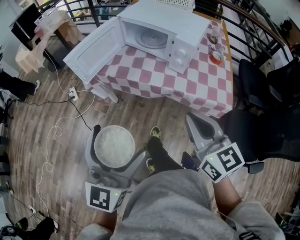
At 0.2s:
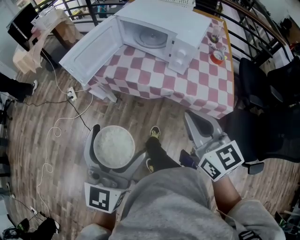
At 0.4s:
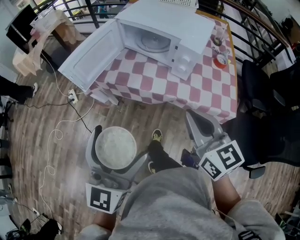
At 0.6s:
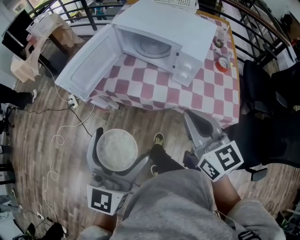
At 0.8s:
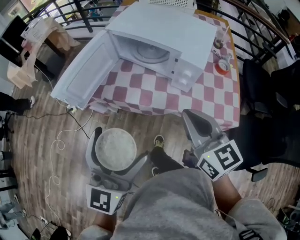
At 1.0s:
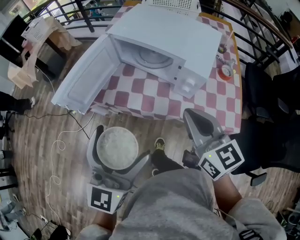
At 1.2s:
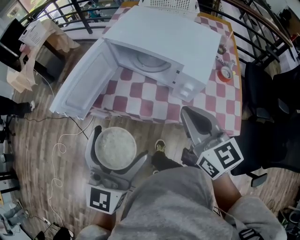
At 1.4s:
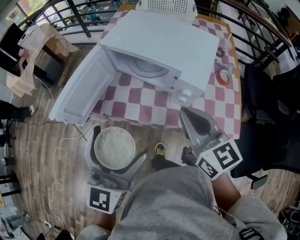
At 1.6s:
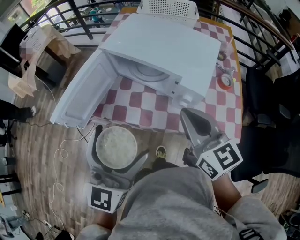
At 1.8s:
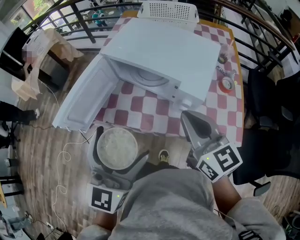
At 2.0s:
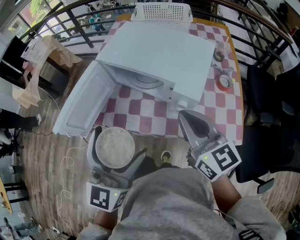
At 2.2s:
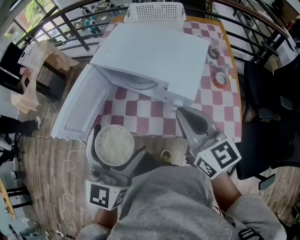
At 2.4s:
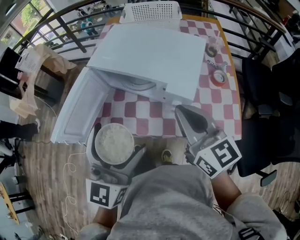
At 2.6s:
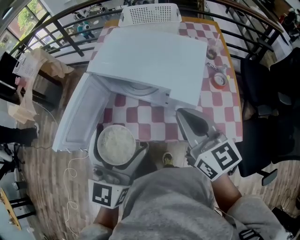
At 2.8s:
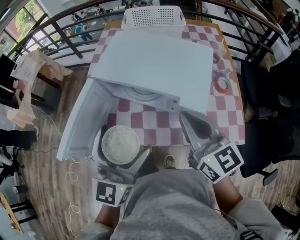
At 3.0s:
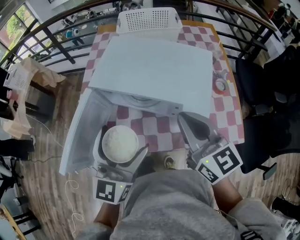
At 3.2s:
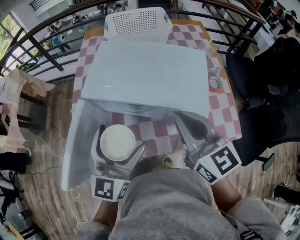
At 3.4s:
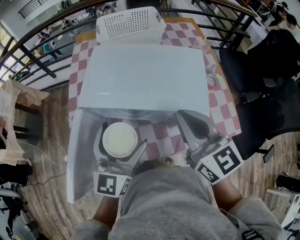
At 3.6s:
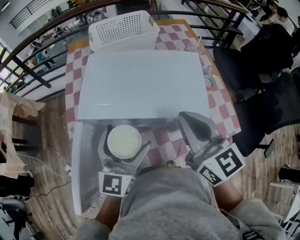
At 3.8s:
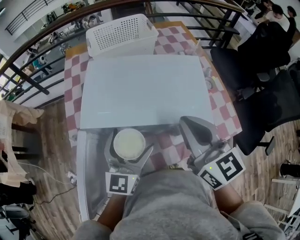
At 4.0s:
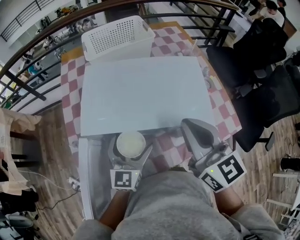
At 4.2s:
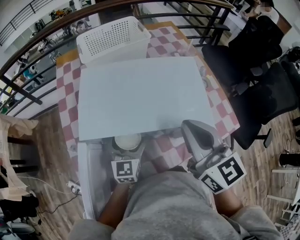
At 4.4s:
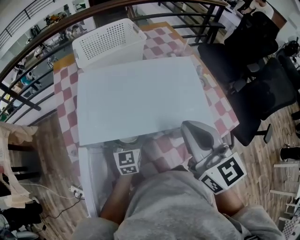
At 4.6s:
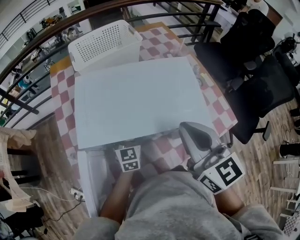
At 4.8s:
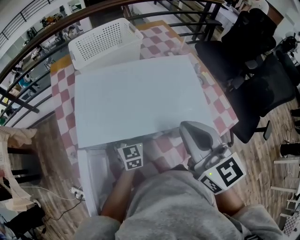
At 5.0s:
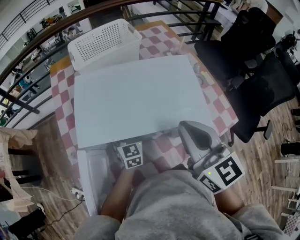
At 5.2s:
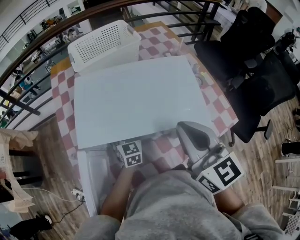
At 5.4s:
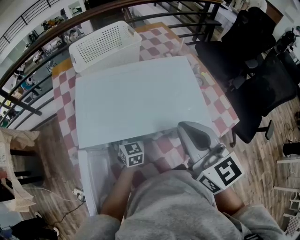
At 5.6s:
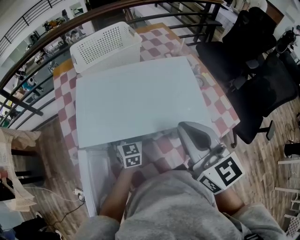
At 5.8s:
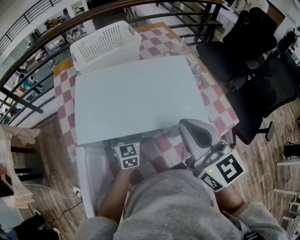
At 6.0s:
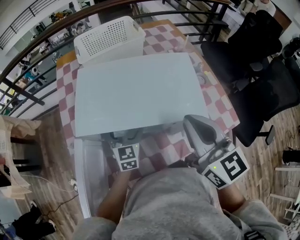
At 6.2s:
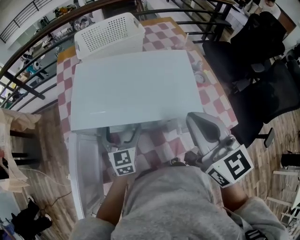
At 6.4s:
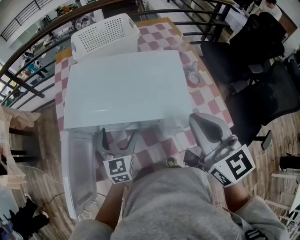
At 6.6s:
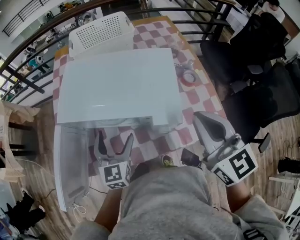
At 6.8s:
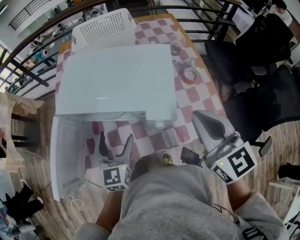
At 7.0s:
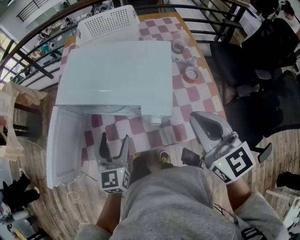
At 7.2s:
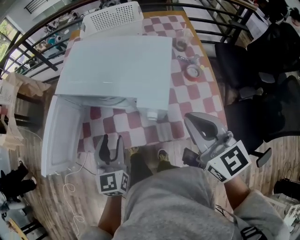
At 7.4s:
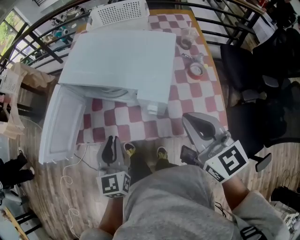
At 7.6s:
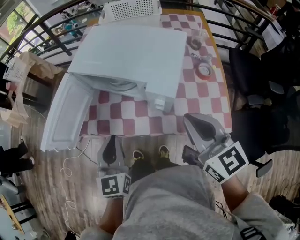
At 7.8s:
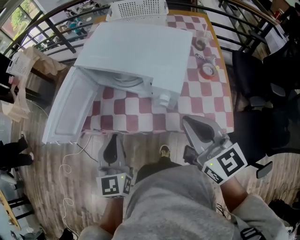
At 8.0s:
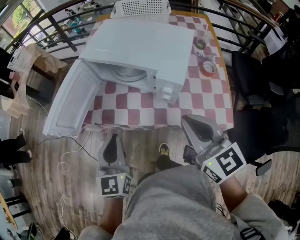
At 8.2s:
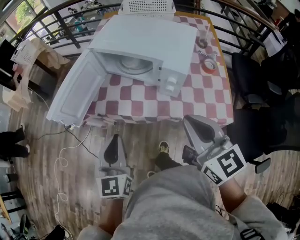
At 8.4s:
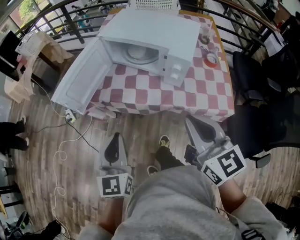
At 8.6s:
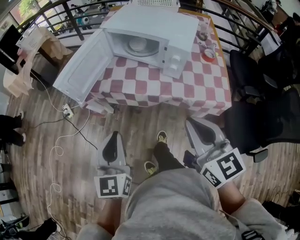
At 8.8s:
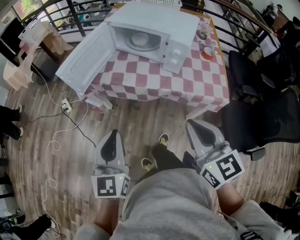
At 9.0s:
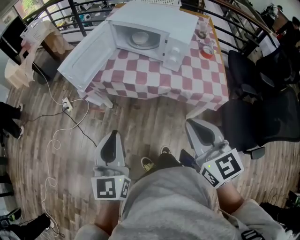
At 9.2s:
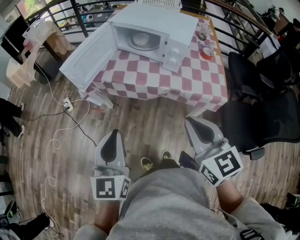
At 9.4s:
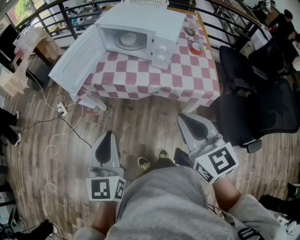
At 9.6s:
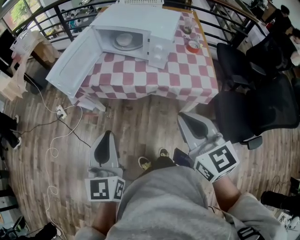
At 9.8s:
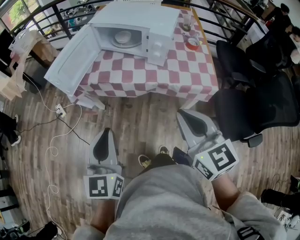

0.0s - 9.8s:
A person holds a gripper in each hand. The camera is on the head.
0.0s - 1.4s: Both grippers travel together forward, some 25 cm.
1.4s - 2.8s: The right gripper moves forward, about 5 cm, while the left gripper goes about 10 cm forward.
2.8s - 4.2s: The right gripper travels forward by roughly 10 cm, and rotates about 30 degrees; the left gripper is displaced forward and downward by about 30 cm, and changes its angle by about 20 degrees.
4.2s - 5.6s: The left gripper goes about 10 cm downward and forward.
5.6s - 7.0s: The left gripper heads backward and upward, covering some 25 cm, and changes its angle by some 20 degrees; the right gripper moves to the right and backward, approximately 20 cm.
7.0s - 8.4s: Both grippers travel together backward and to the left, approximately 25 cm. The left gripper closes.
8.4s - 9.8s: The grippers both shift backward by approximately 10 cm.

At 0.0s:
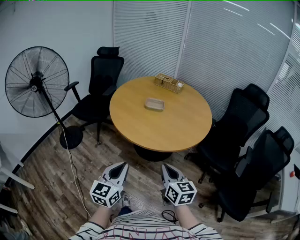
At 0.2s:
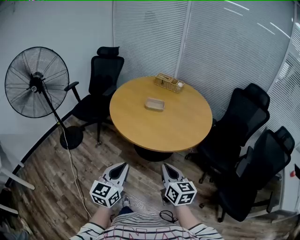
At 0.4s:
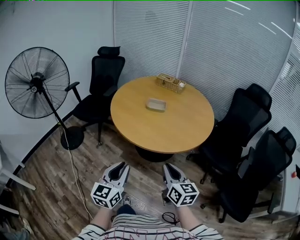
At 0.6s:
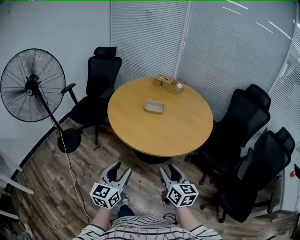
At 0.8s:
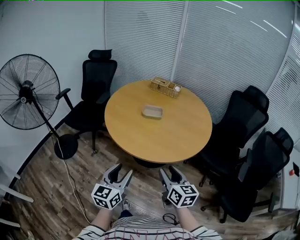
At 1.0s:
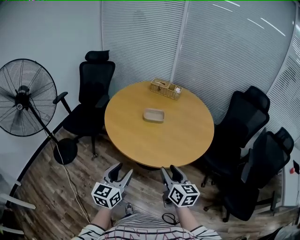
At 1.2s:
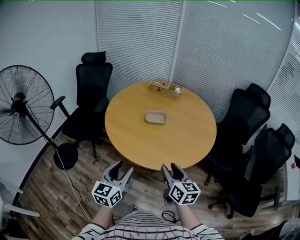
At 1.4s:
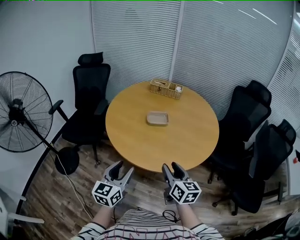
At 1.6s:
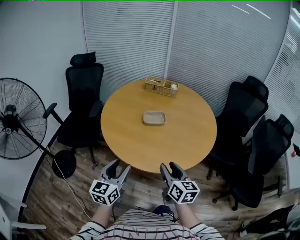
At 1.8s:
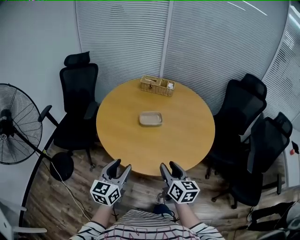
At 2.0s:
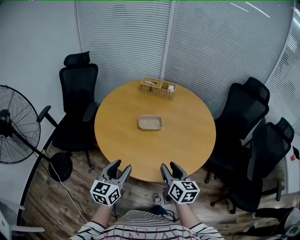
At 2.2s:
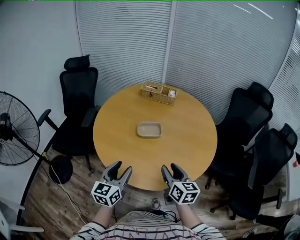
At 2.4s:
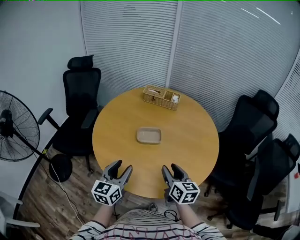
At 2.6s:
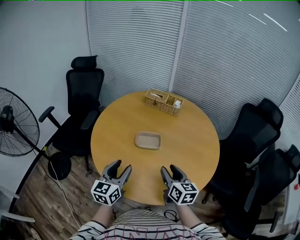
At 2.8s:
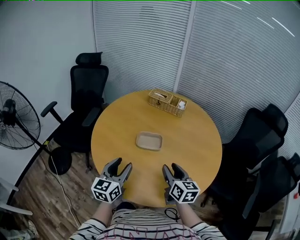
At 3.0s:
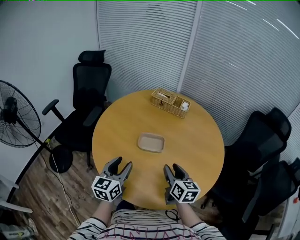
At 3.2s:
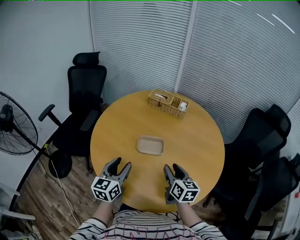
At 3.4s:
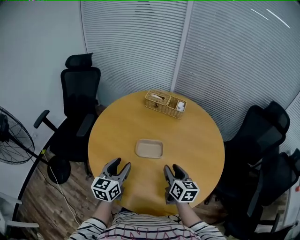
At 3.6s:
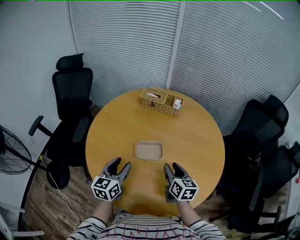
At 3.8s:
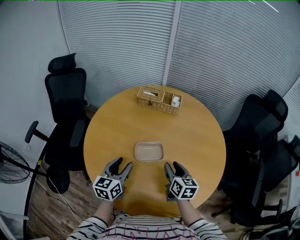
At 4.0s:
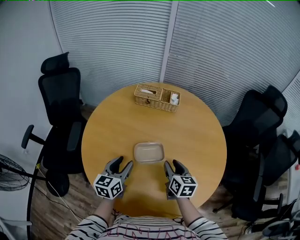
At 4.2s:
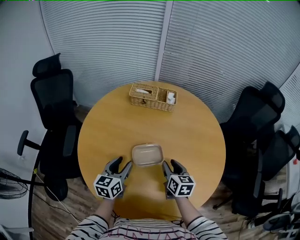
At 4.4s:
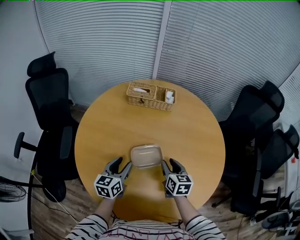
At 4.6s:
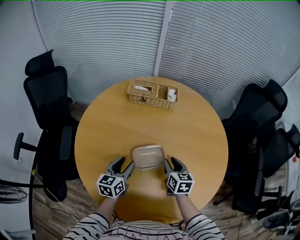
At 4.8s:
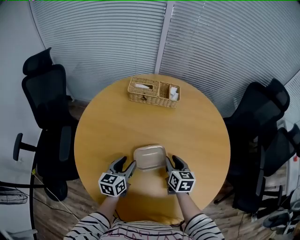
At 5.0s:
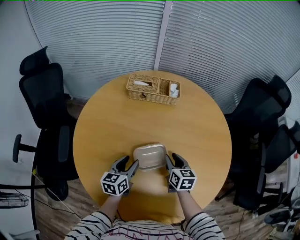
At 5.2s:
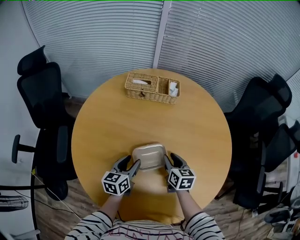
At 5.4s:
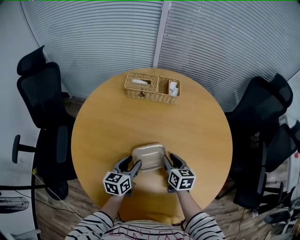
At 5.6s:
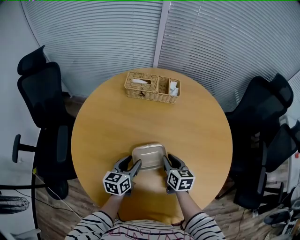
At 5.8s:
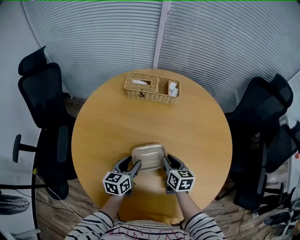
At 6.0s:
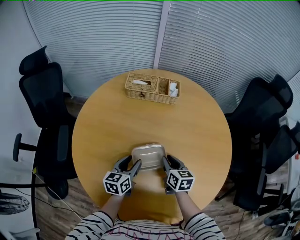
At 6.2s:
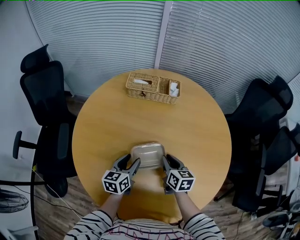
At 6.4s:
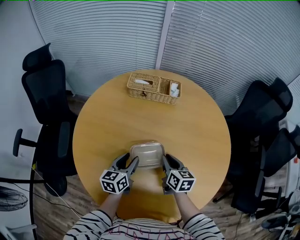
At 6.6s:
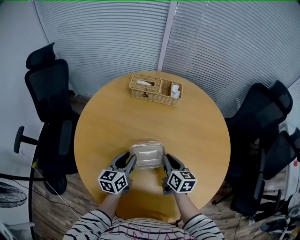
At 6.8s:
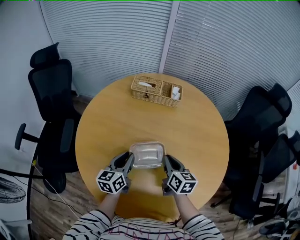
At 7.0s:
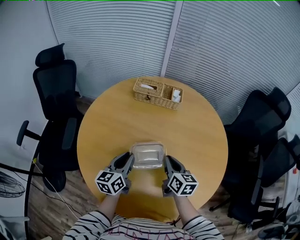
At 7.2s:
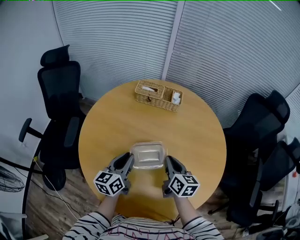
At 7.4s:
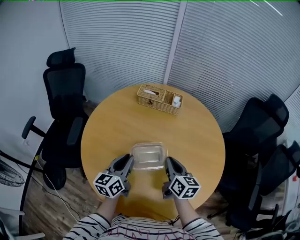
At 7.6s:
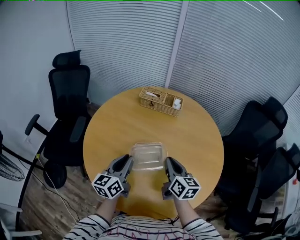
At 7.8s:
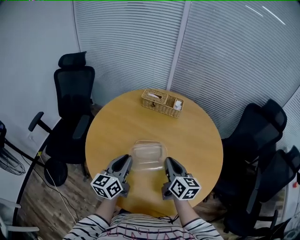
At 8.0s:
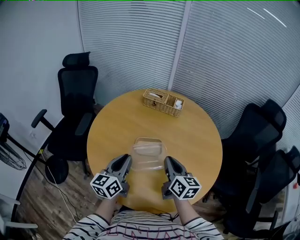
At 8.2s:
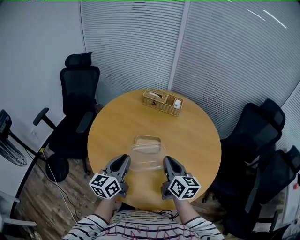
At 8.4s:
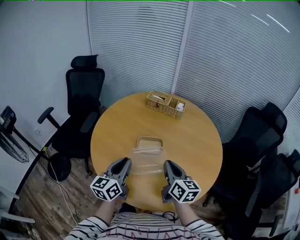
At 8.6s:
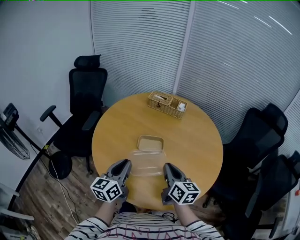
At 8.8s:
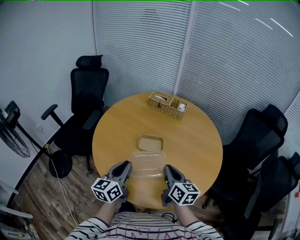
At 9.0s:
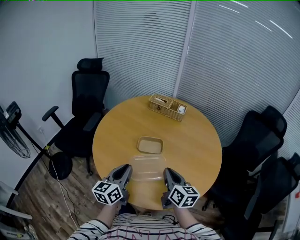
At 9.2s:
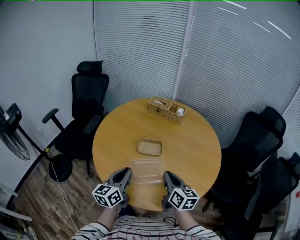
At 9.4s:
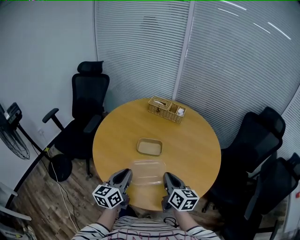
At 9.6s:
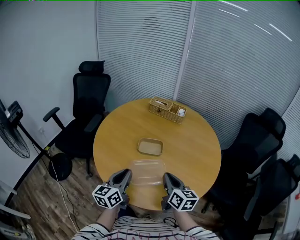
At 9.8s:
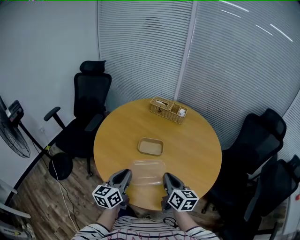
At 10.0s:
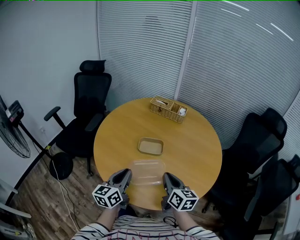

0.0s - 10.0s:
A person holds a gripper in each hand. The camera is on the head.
0.0s - 1.4s: Both grippers travel together forward and to the left, about 25 cm. The left gripper opens. Meanwhile the right gripper opens its fingers.
1.4s - 2.8s: Both grippers travel together forward, roughly 25 cm.
2.8s - 4.2s: The grippers both shift forward and downward by roughly 20 cm. The left gripper swivels some 20 degrees; the right gripper changes its angle by some 20 degrees.
4.2s - 5.8s: The two grippers go some 10 cm downward and forward.
5.8s - 7.2s: The left gripper travels upward and backward by some 15 cm, and closes; the right gripper is displaced upward by about 10 cm.
7.2s - 8.6s: The right gripper moves backward and upward, some 20 cm, while the left gripper shifts about 20 cm backward.
8.6s - 10.0s: The left gripper shifts about 5 cm backward, while the right gripper moves roughly 5 cm.

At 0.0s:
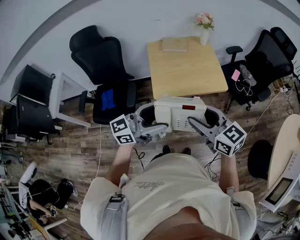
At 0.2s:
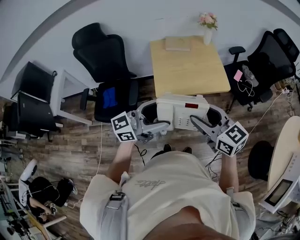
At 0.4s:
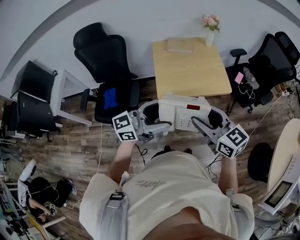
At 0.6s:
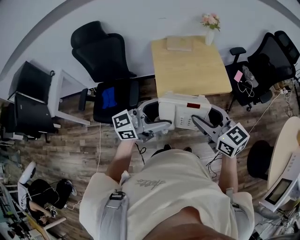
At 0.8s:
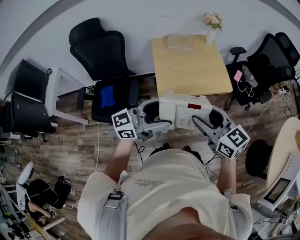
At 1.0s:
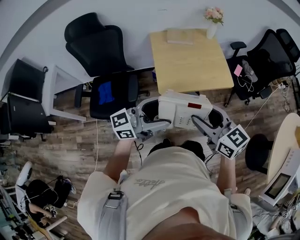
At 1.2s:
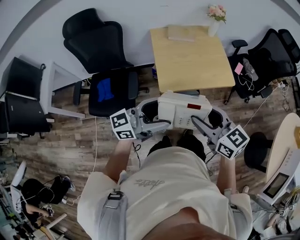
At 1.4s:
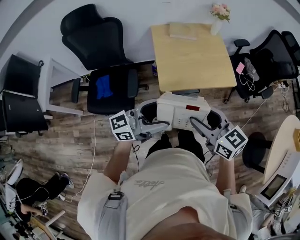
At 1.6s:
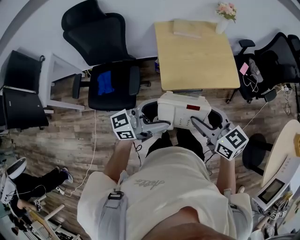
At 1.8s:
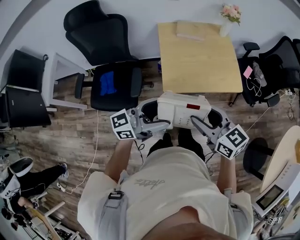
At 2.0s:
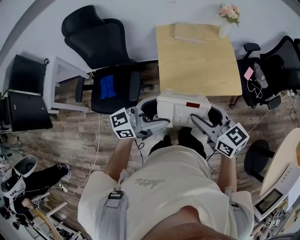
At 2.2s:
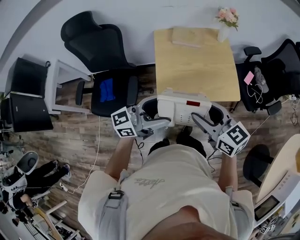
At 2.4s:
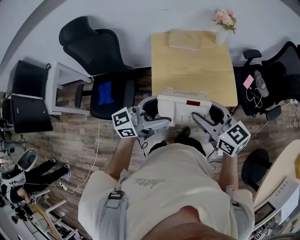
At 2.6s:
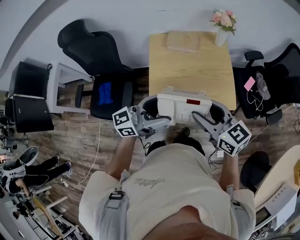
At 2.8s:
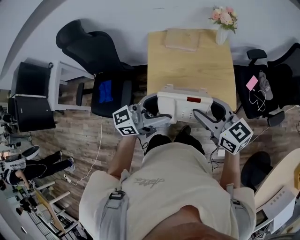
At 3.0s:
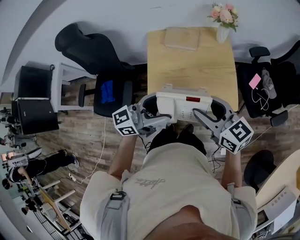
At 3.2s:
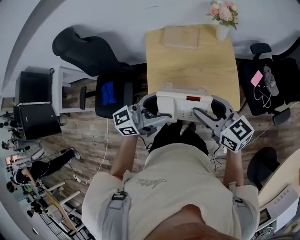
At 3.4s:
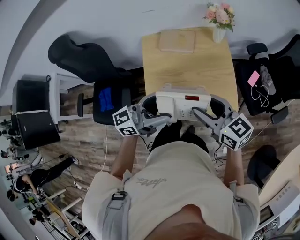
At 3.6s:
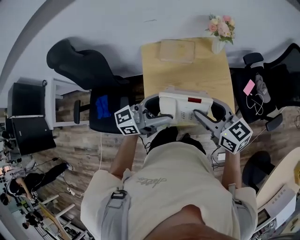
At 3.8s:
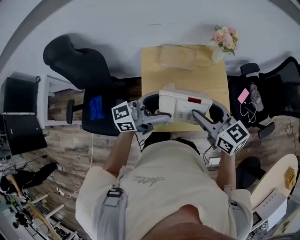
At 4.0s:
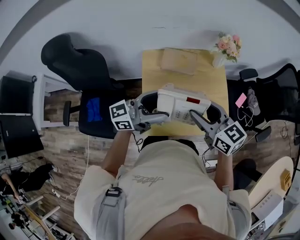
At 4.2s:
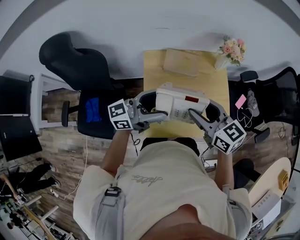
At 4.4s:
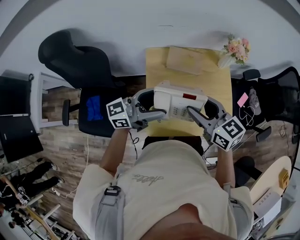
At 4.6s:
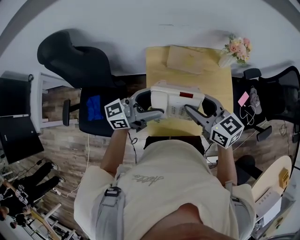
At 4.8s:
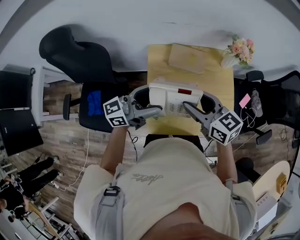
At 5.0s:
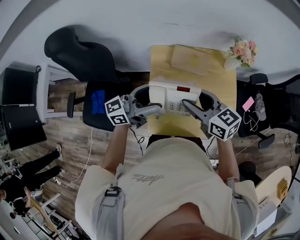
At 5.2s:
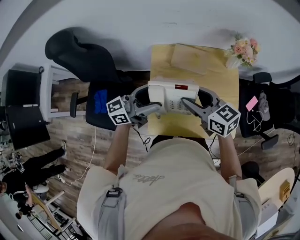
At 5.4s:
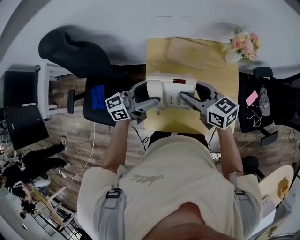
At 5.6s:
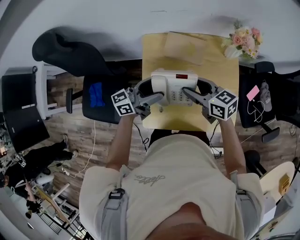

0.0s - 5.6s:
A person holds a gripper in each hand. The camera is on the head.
0.0s - 1.4s: Both grippers travel together to the left, some 10 cm.
1.4s - 2.8s: The two grippers go about 25 cm forward and to the right.
2.8s - 4.2s: Both grippers move forward and to the left, some 15 cm.
4.2s - 5.6s: The grippers both shift downward and forward by some 20 cm. The right gripper turns by about 20 degrees.
